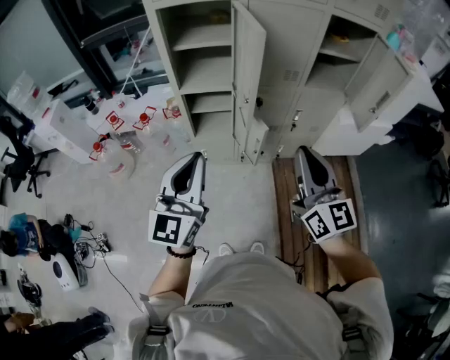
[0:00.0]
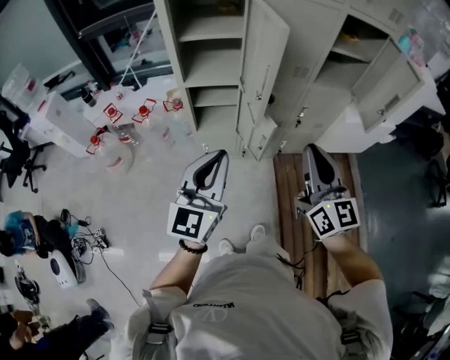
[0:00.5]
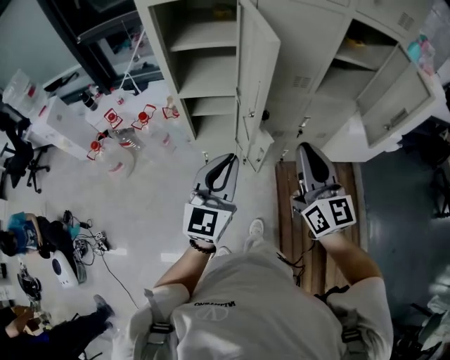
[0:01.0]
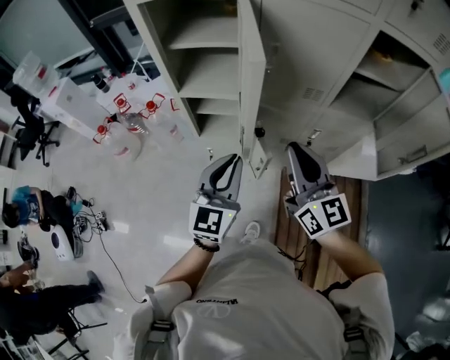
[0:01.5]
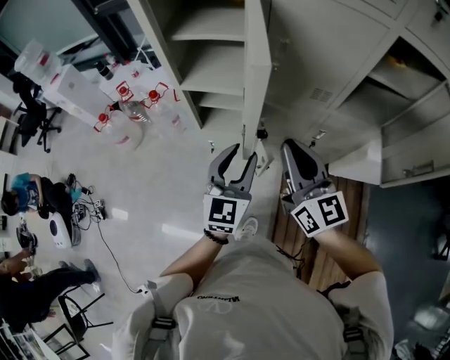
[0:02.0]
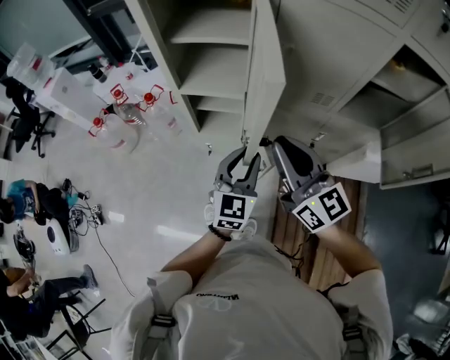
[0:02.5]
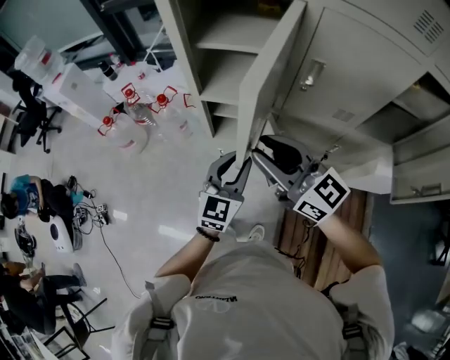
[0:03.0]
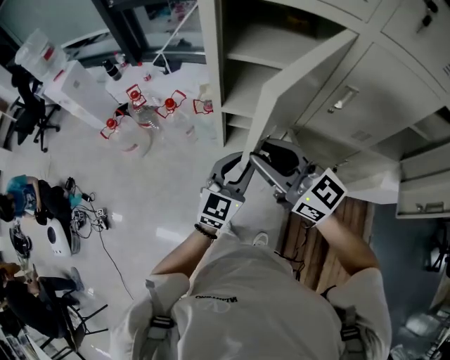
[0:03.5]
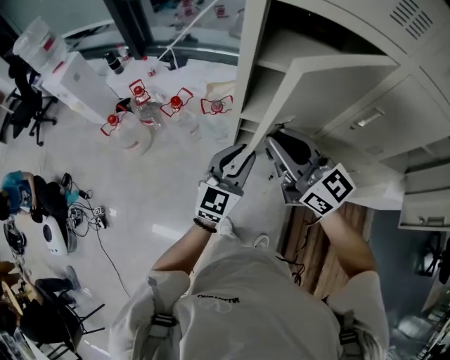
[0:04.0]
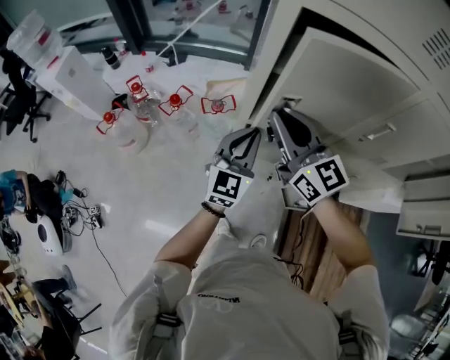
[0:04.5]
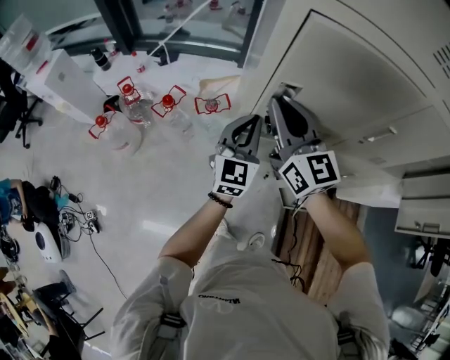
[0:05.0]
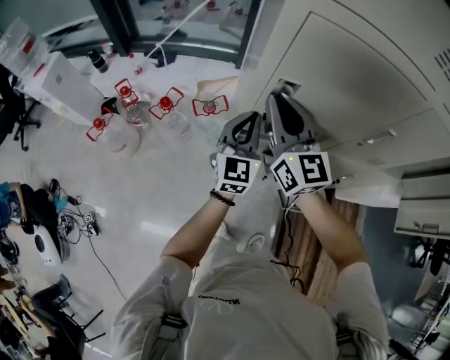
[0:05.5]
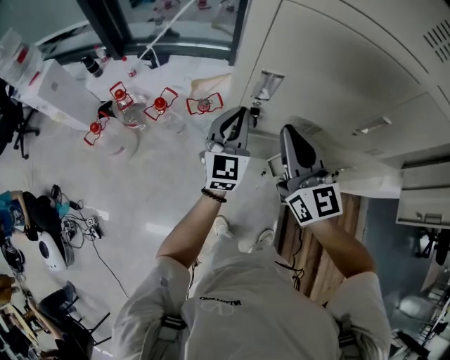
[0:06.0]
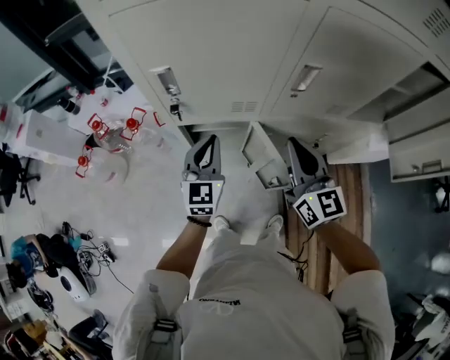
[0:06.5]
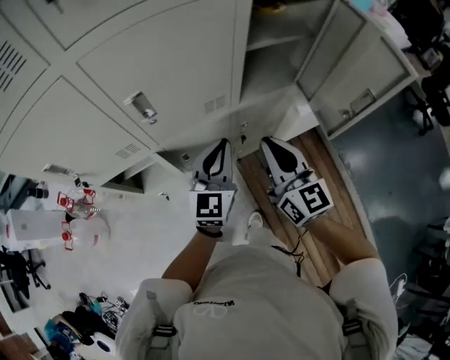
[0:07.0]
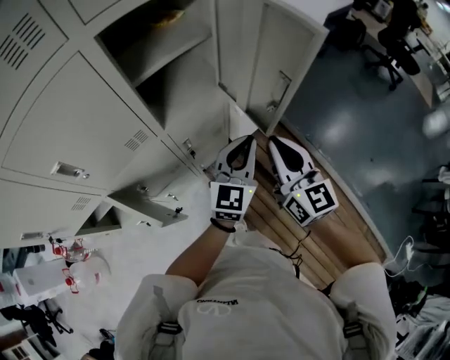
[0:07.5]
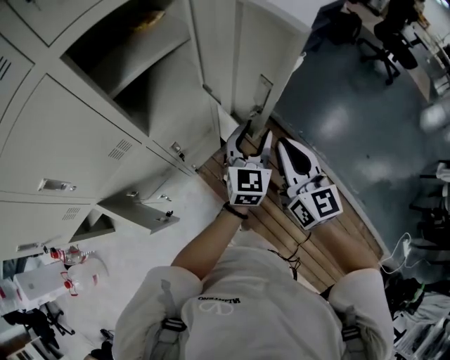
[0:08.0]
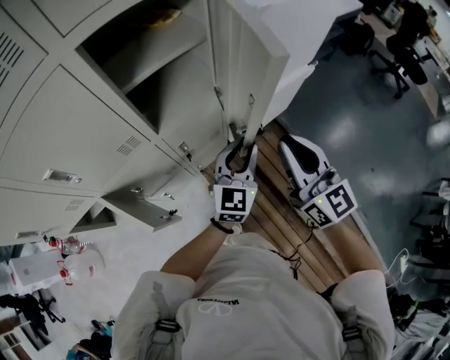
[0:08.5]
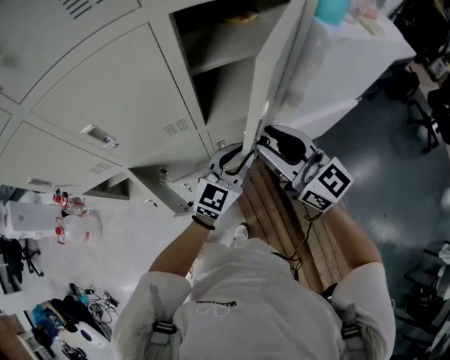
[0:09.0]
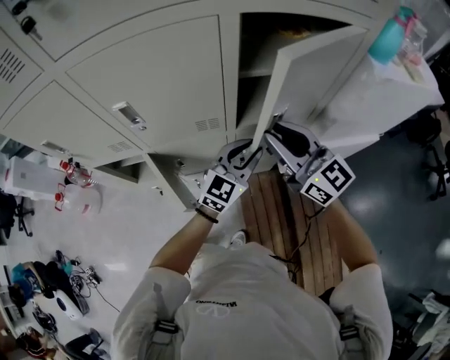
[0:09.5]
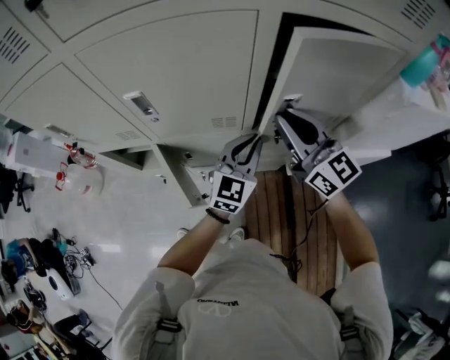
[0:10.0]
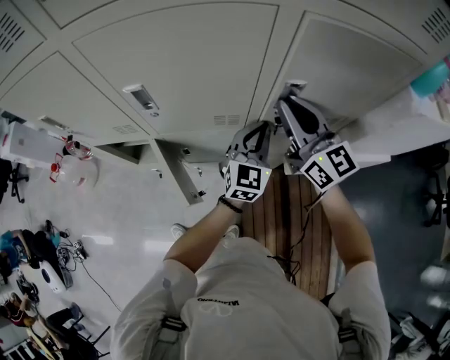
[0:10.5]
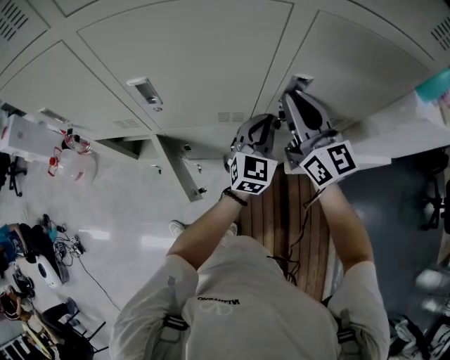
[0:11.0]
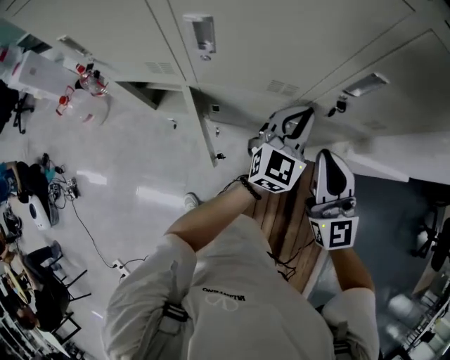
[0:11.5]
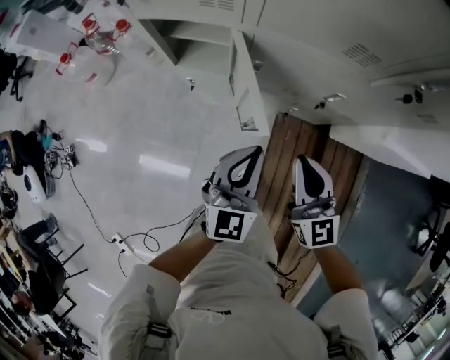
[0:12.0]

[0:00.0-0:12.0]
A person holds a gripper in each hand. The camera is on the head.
0:00.0 to 0:02.0: The left gripper is displaced forward, to the right and downward by about 30 cm, turns by about 20 degrees, and opens its fingers. Meanwhile the right gripper moves forward, roughly 20 cm.
0:02.0 to 0:04.0: Both grippers move to the left and forward, approximately 30 cm. The right gripper rotates about 30 degrees, and opens, then closes again.
0:04.0 to 0:06.0: The left gripper heads forward, covering about 15 cm, and closes its fingers. Meanwhile the right gripper goes about 5 cm forward, and rotates about 30 degrees.
0:06.0 to 0:08.0: The pair of grippers is taken some 80 cm. The left gripper swivels some 50 degrees, and opens. Meanwhile the right gripper turns by some 50 degrees.
0:08.0 to 0:10.0: The right gripper moves about 30 cm, turns by roughly 60 degrees, and opens, then closes once more; the left gripper changes place by about 30 cm, rotates some 30 degrees, and closes.
0:10.0 to 0:12.0: The right gripper goes about 35 cm downward, to the left and backward; the left gripper is displaced to the left, backward and downward by roughly 30 cm, and swivels approximately 20 degrees.

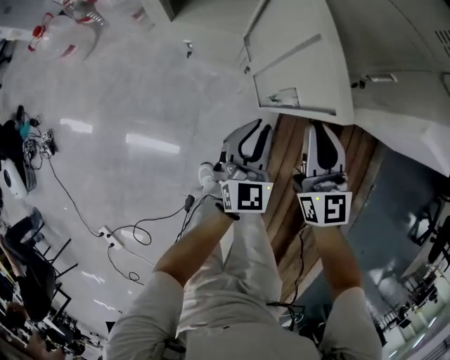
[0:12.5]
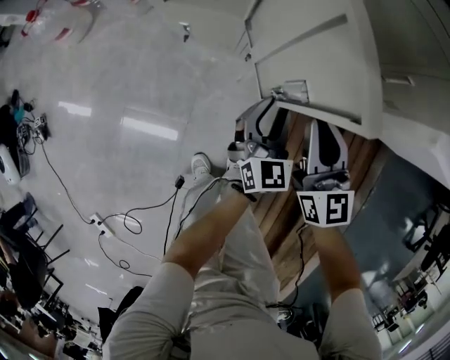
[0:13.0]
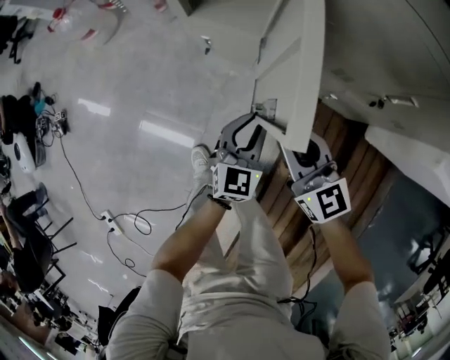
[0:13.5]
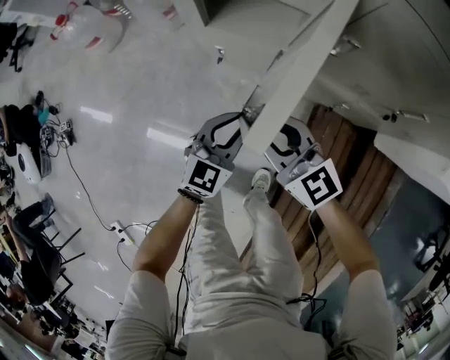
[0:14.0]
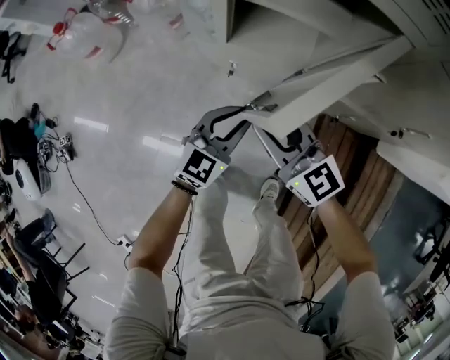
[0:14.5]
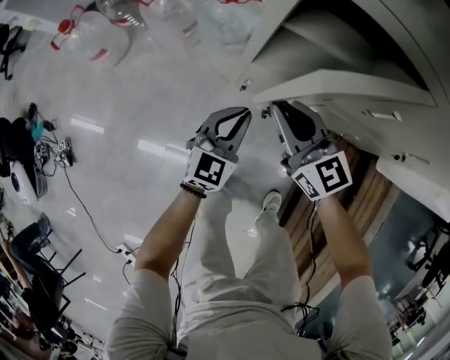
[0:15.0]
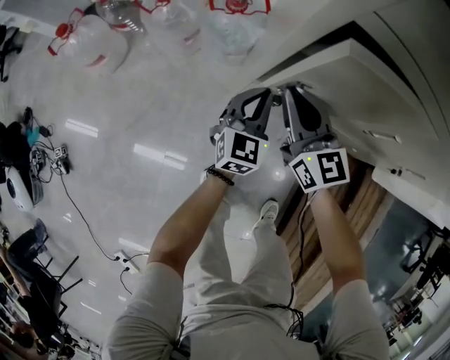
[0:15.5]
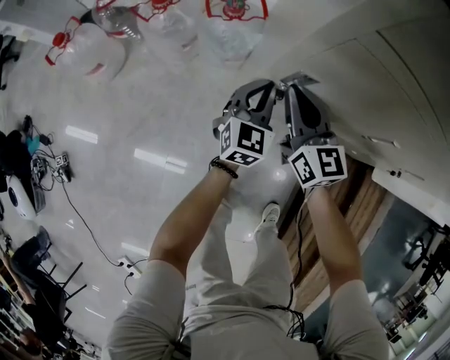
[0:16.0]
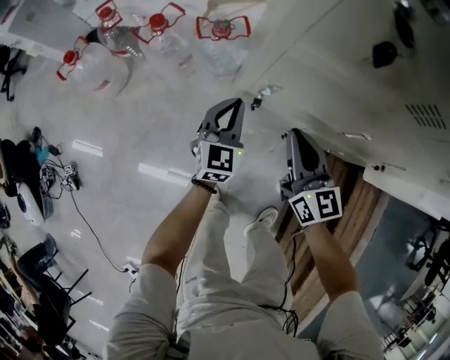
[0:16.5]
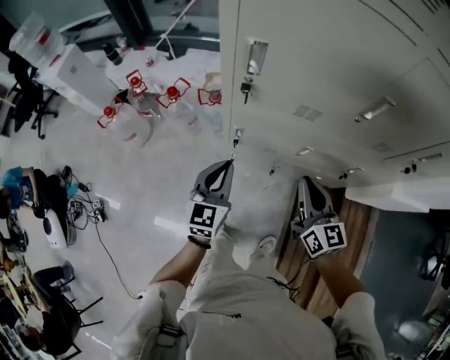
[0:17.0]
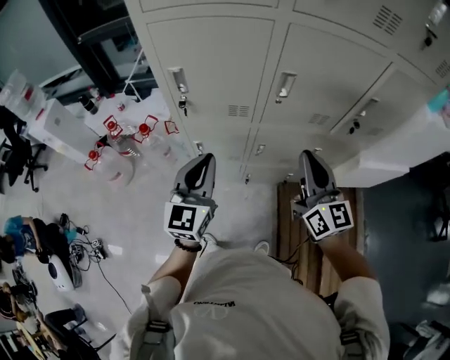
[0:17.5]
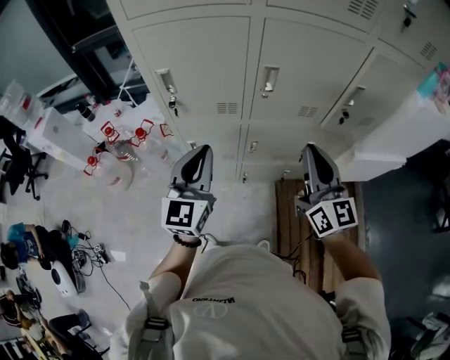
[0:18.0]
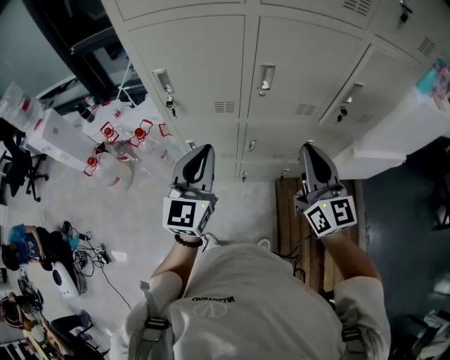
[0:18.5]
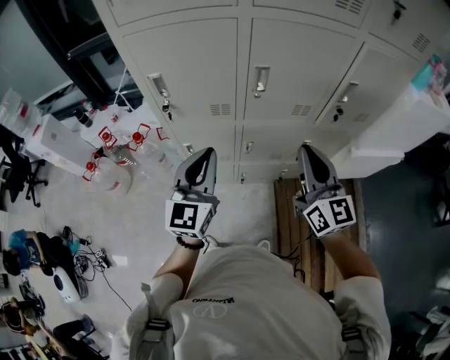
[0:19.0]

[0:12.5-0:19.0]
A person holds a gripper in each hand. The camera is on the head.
0:12.5 to 0:14.5: The two grippers go some 25 cm to the left and forward. The left gripper swivels roughly 20 degrees. Meanwhile the right gripper turns by roughly 30 degrees.
0:14.5 to 0:17.0: The right gripper moves upward and to the right, about 30 cm, and swivels some 30 degrees. Meanwhile the left gripper moves upward, approximately 30 cm, and changes its angle by approximately 20 degrees.
0:17.0 to 0:19.0: The two grippers go approximately 25 cm upward and to the right. The right gripper swivels about 20 degrees. The left gripper changes its angle by about 20 degrees.

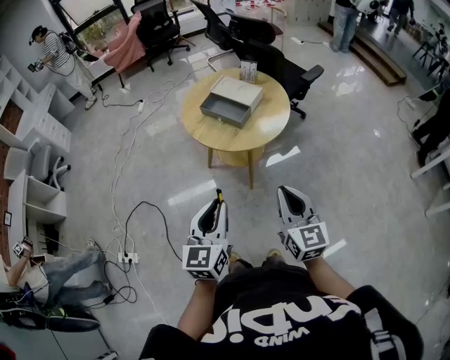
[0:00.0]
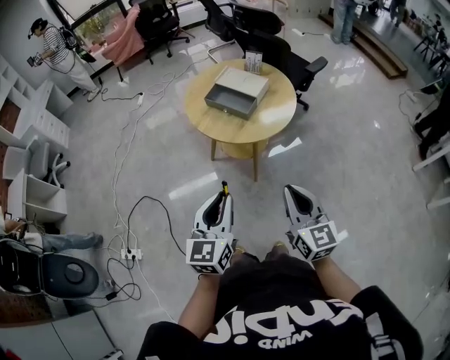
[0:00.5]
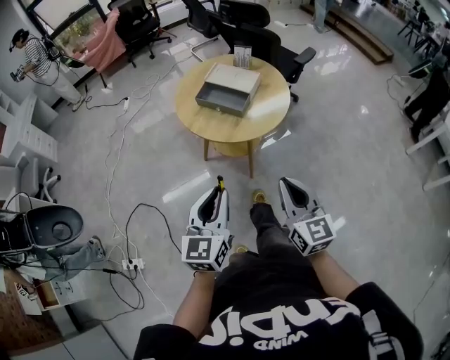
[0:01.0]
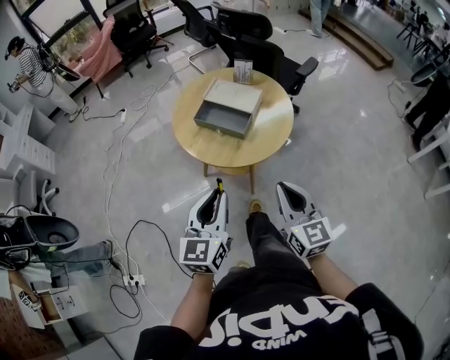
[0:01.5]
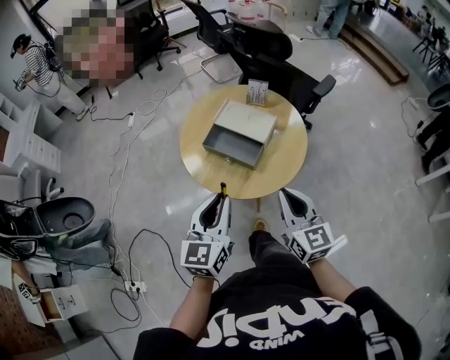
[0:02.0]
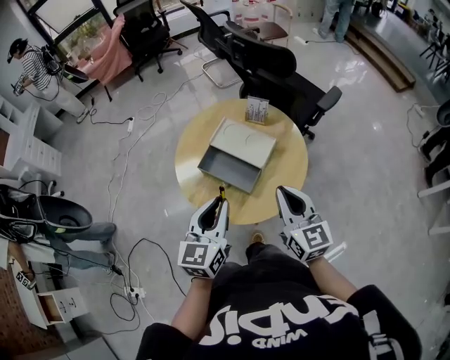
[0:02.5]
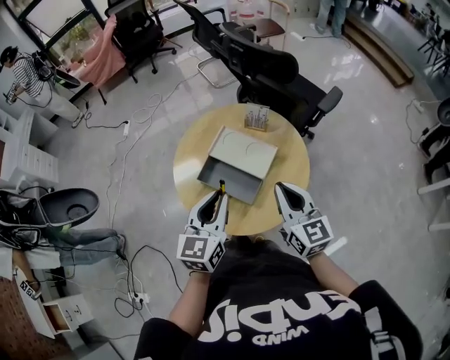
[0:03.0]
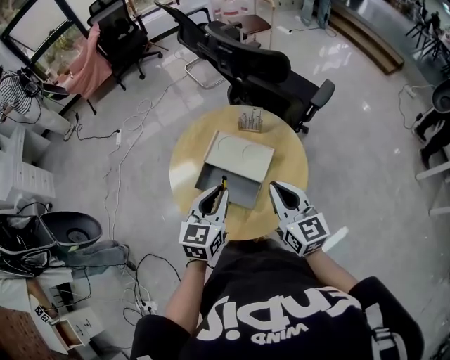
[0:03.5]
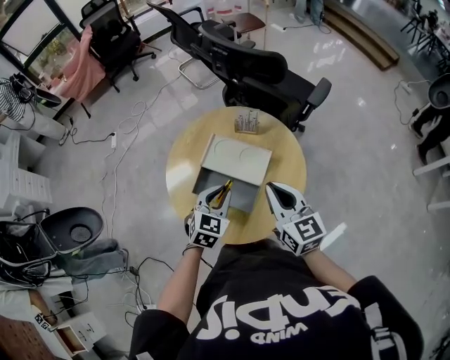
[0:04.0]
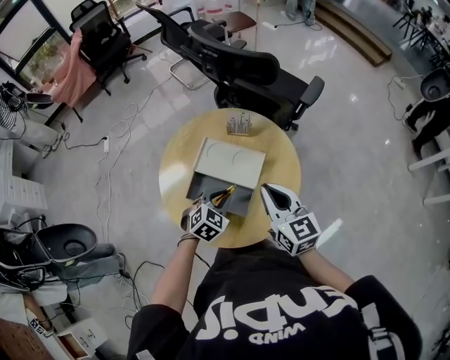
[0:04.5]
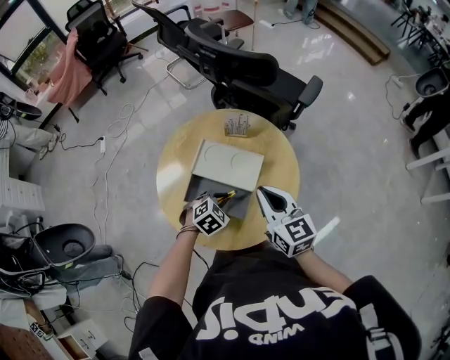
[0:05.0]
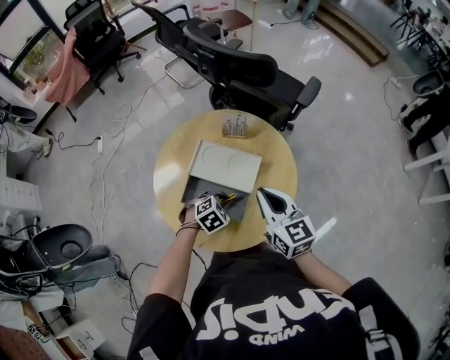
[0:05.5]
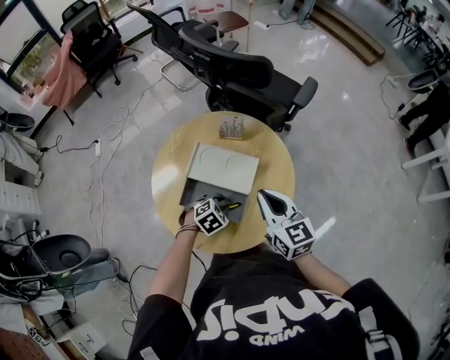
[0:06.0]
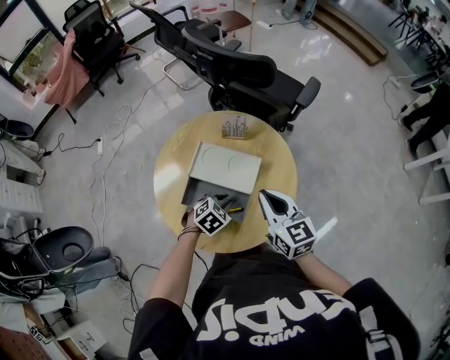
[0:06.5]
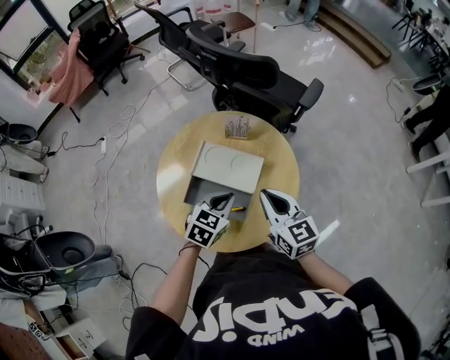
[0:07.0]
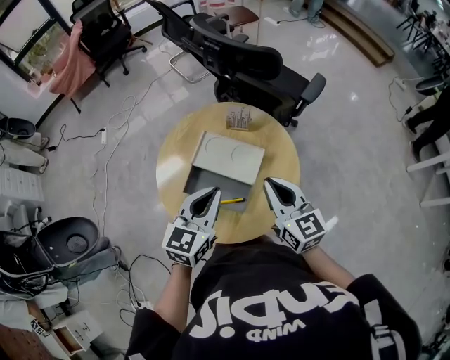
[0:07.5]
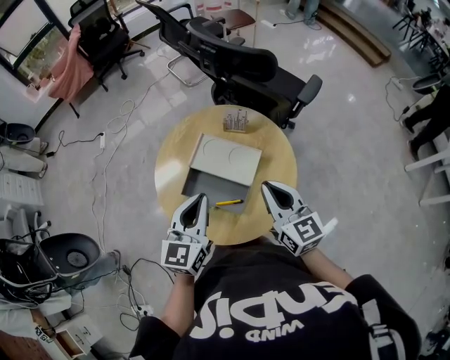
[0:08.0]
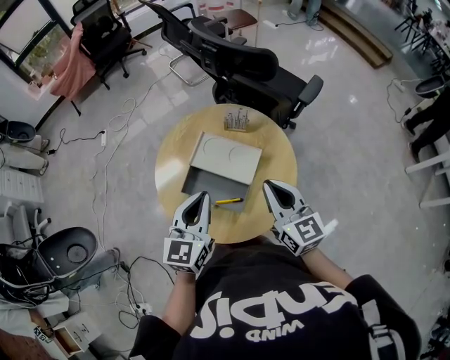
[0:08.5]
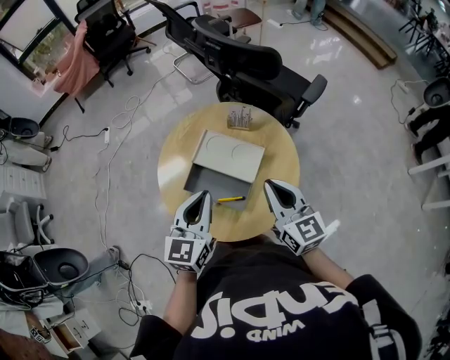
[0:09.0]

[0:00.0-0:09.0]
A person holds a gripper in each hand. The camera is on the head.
0:00.0 to 0:02.0: Both grippers travel together forward, roughly 25 cm.
0:02.0 to 0:04.5: The left gripper heads forward and downward, covering about 35 cm, and tilts its fingers approximately 40 degrees downward; the right gripper is displaced forward by some 25 cm.
0:04.5 to 0:07.0: The left gripper moves upward, some 5 cm, and rotates approximately 20 degrees.
0:07.0 to 0:09.0: The left gripper travels upward and to the left by approximately 15 cm, and rotates about 40 degrees; the right gripper moves about 5 cm.
